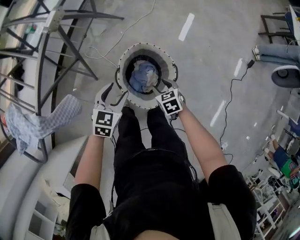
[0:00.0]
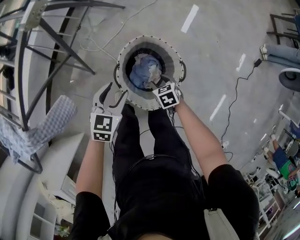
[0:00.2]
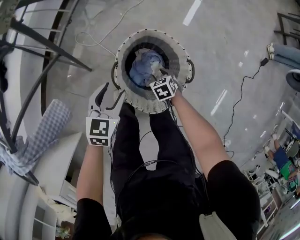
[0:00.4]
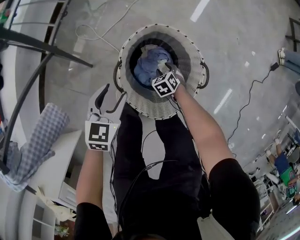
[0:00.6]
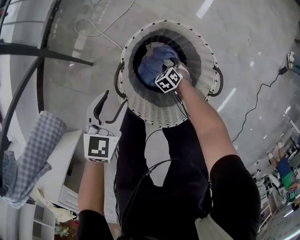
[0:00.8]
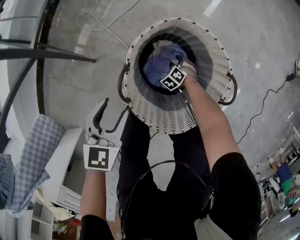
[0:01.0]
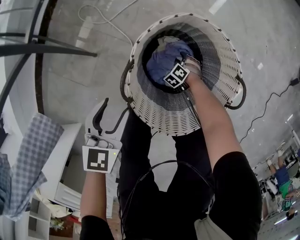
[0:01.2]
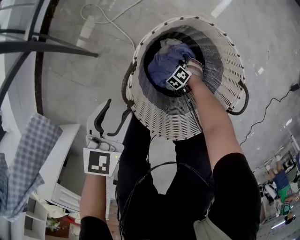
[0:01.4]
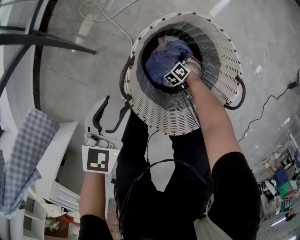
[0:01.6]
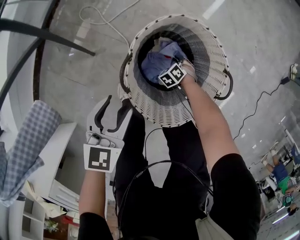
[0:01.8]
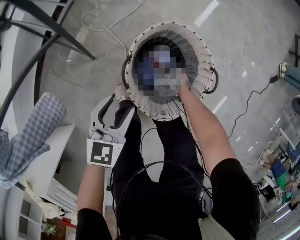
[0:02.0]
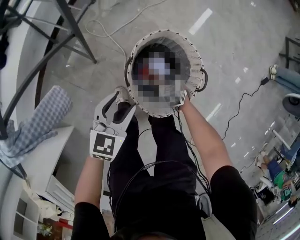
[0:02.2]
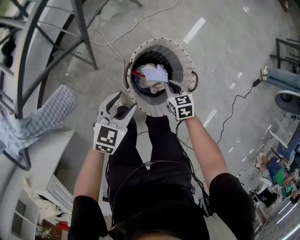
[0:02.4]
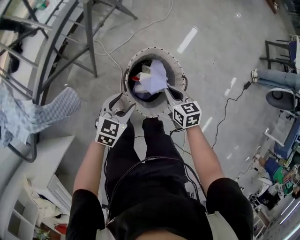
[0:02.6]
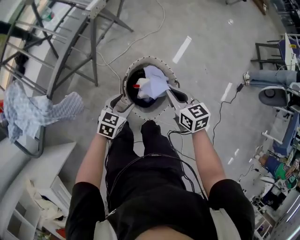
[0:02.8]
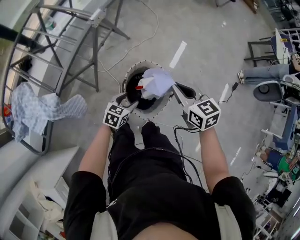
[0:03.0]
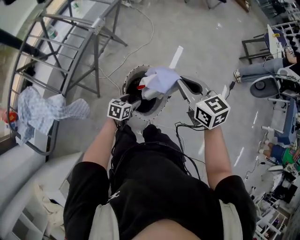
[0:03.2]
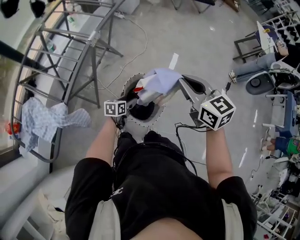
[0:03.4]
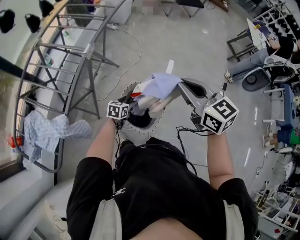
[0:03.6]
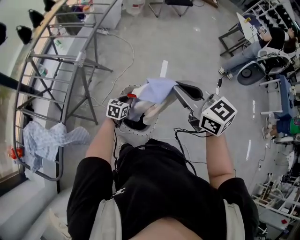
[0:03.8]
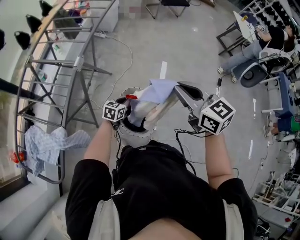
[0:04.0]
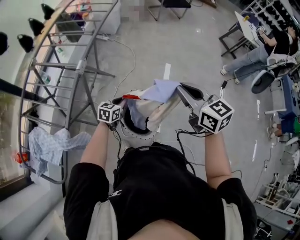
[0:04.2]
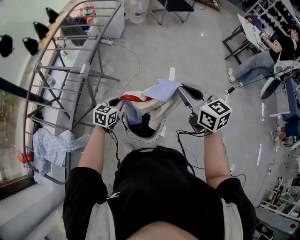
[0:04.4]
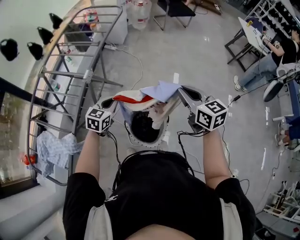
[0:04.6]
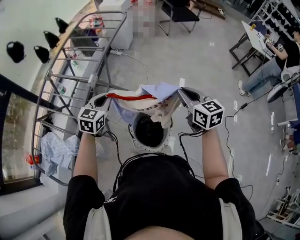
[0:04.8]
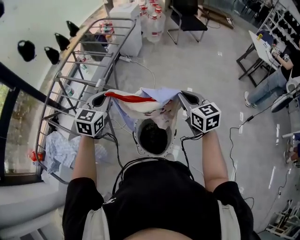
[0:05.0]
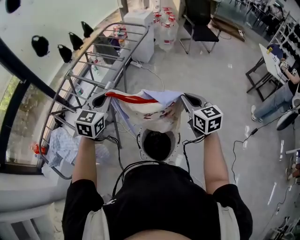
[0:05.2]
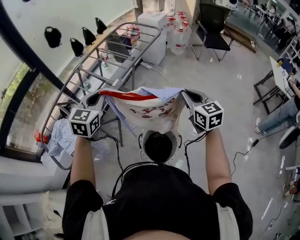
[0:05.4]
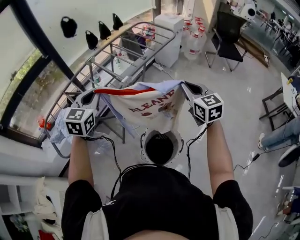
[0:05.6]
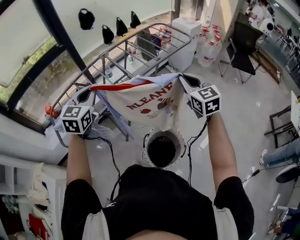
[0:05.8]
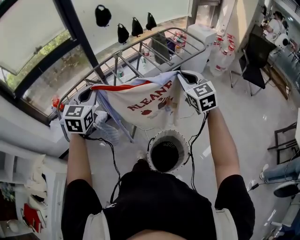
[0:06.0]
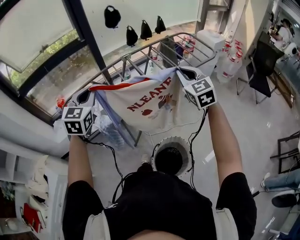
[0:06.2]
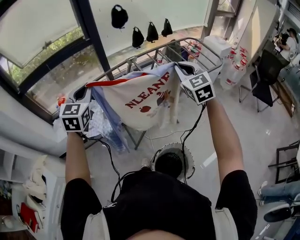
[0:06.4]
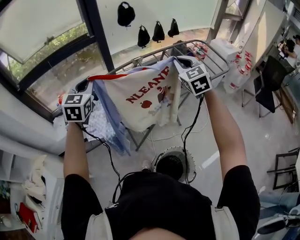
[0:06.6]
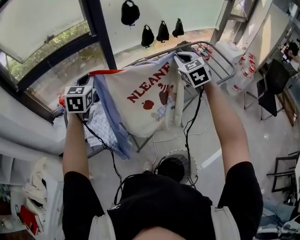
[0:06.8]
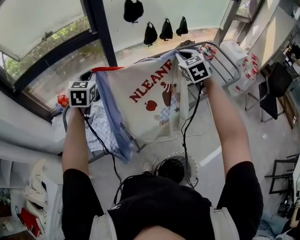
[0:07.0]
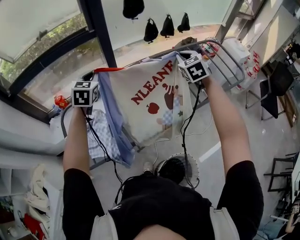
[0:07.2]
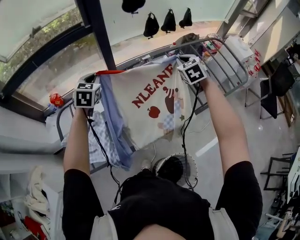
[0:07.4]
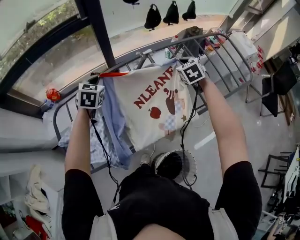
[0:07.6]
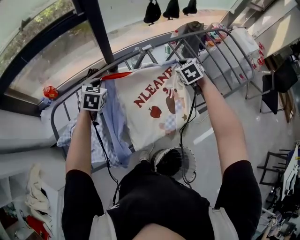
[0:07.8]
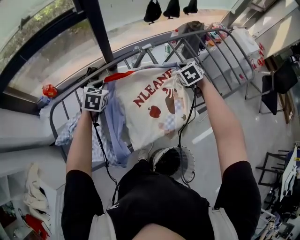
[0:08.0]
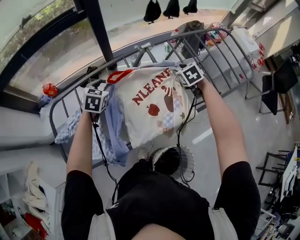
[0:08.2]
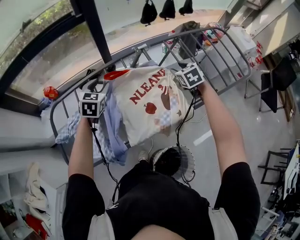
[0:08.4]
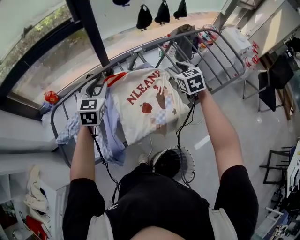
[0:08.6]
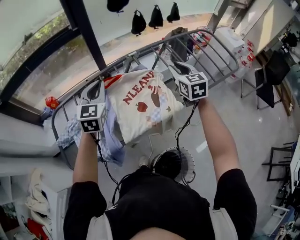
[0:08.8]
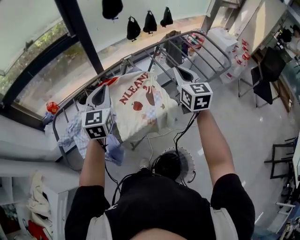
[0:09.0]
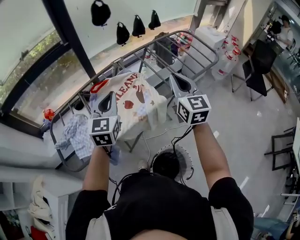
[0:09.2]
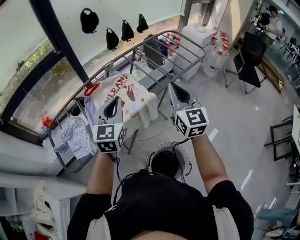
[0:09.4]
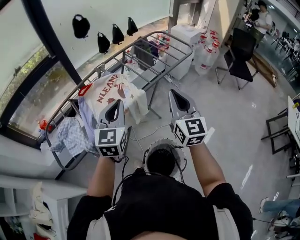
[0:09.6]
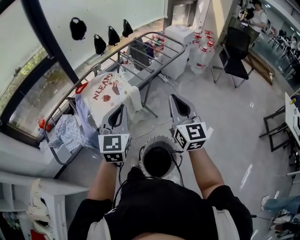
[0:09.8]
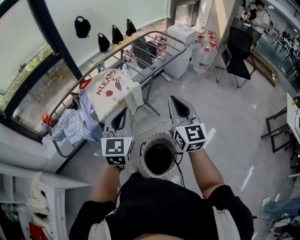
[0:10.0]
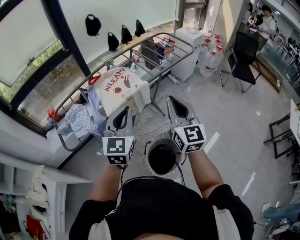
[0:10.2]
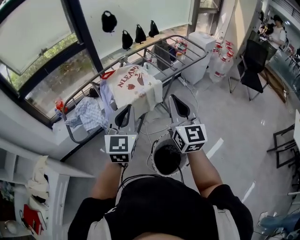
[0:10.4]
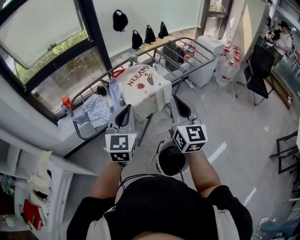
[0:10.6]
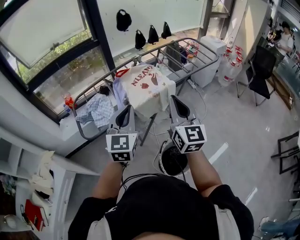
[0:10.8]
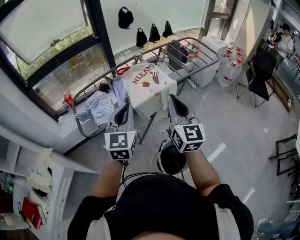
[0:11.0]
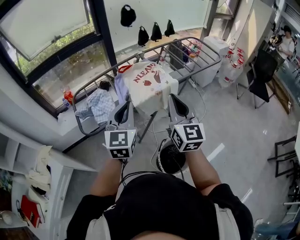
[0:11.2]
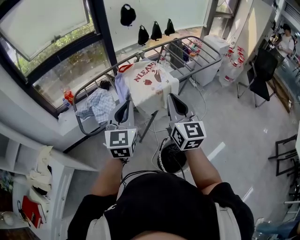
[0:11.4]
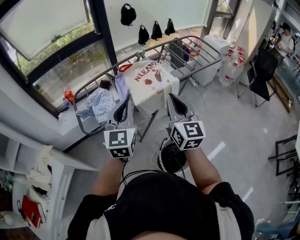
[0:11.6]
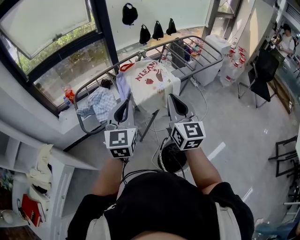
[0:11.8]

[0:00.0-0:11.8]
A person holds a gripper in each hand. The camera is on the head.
0:00.0 to 0:01.4: The left gripper shifts approximately 25 cm downward, while the right gripper heads downward, covering some 50 cm, and rotates around the line of its fingers by roughly 40 degrees, counterclockwise from behind.
0:01.4 to 0:03.0: The left gripper is displaced upward by roughly 25 cm. Meanwhile the right gripper heads upward, covering about 80 cm, tips its fingers upward by some 40 degrees, and closes its fingers.
0:03.0 to 0:04.4: The left gripper shifts some 20 cm upward and forward, and closes its fingers, while the right gripper heads upward and to the right, covering approximately 20 cm, and swivels some 20 degrees.
0:04.4 to 0:06.0: The right gripper changes place by roughly 25 cm, and changes its angle by approximately 40 degrees. The left gripper goes some 35 cm upward, and rotates some 70 degrees.
0:06.0 to 0:07.4: Both grippers are carried forward, roughly 50 cm. The right gripper rotates roughly 20 degrees, while the left gripper rotates roughly 20 degrees.
0:07.4 to 0:08.8: The right gripper heads backward, covering roughly 10 cm, travels downward and back again, about 15 cm each way, changes its angle by approximately 30 degrees, and opens its fingers, while the left gripper shifts some 15 cm to the right and backward, goes downward and returns, about 15 cm each way, and opens, then closes once more.
0:08.8 to 0:10.4: The two grippers travel together, backward, approximately 40 cm. The right gripper swivels roughly 30 degrees, and closes up.
0:10.4 to 0:11.8: The two grippers go some 10 cm to the left.

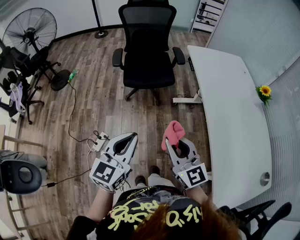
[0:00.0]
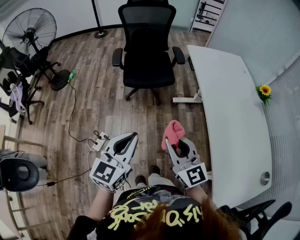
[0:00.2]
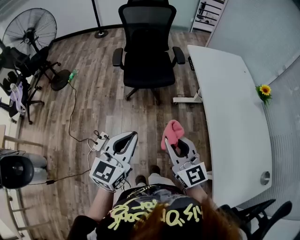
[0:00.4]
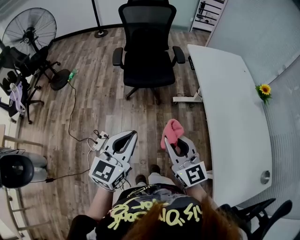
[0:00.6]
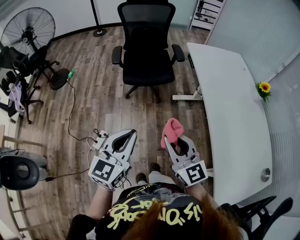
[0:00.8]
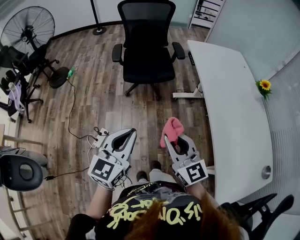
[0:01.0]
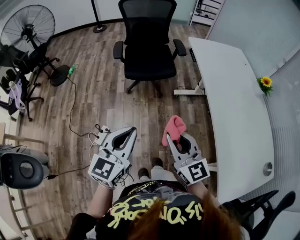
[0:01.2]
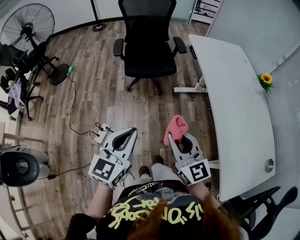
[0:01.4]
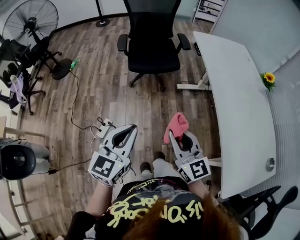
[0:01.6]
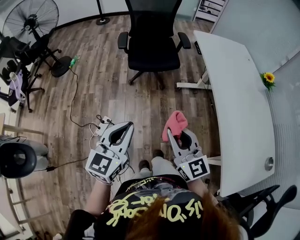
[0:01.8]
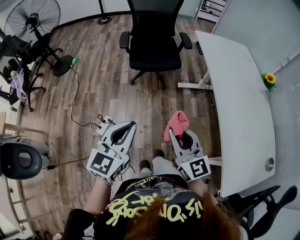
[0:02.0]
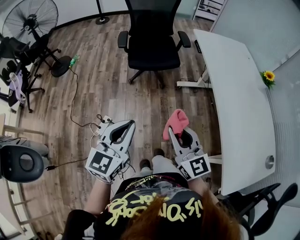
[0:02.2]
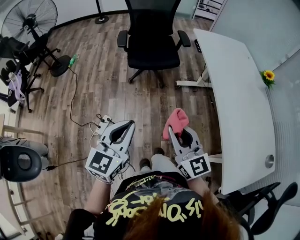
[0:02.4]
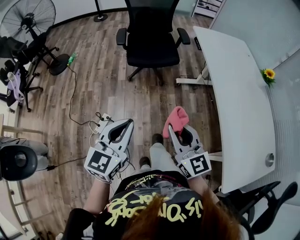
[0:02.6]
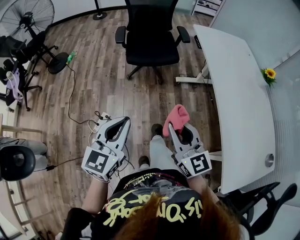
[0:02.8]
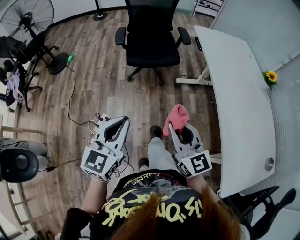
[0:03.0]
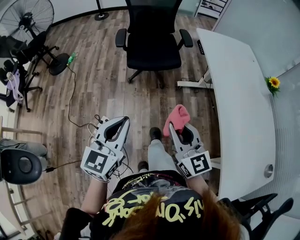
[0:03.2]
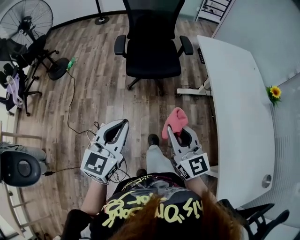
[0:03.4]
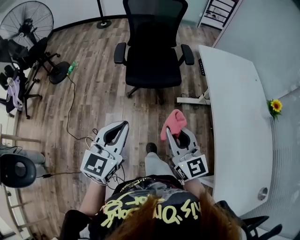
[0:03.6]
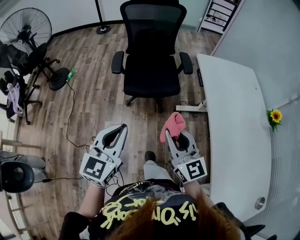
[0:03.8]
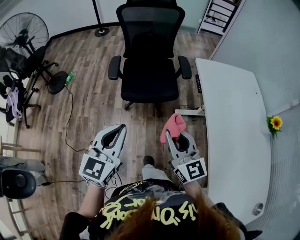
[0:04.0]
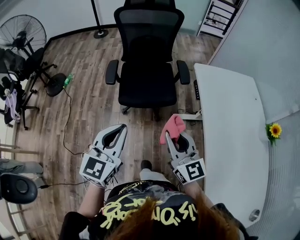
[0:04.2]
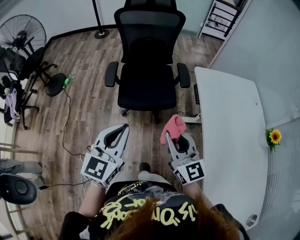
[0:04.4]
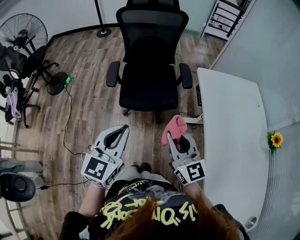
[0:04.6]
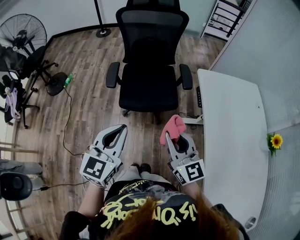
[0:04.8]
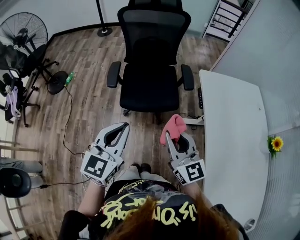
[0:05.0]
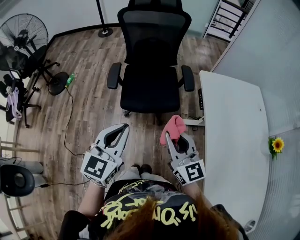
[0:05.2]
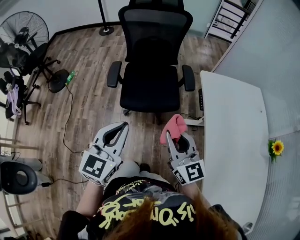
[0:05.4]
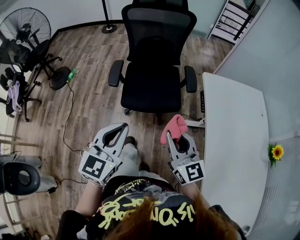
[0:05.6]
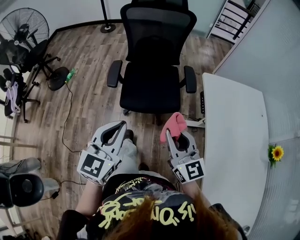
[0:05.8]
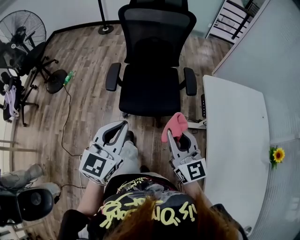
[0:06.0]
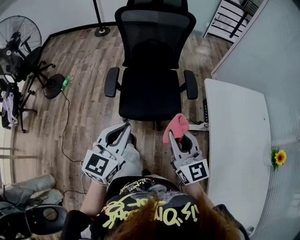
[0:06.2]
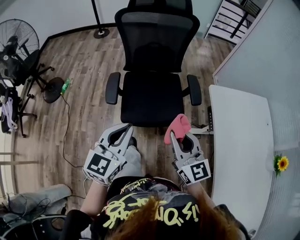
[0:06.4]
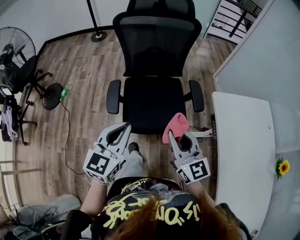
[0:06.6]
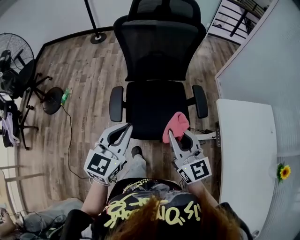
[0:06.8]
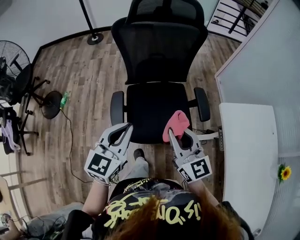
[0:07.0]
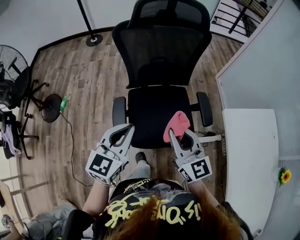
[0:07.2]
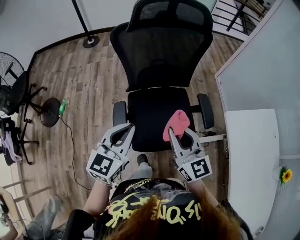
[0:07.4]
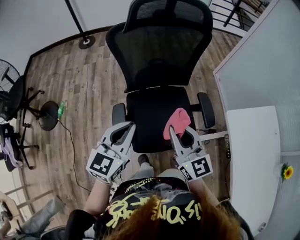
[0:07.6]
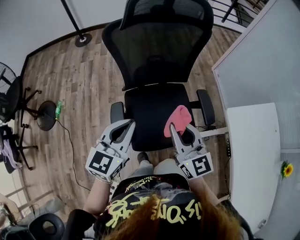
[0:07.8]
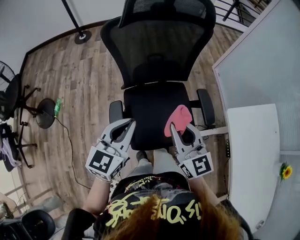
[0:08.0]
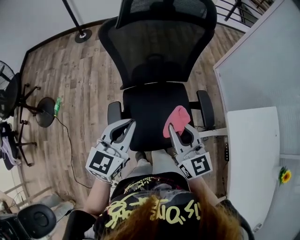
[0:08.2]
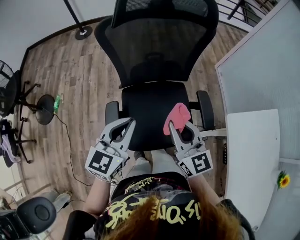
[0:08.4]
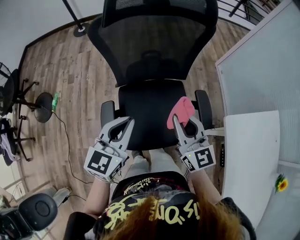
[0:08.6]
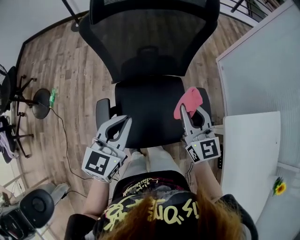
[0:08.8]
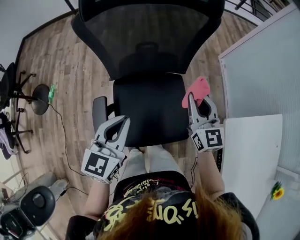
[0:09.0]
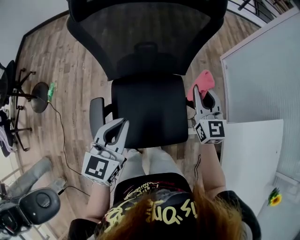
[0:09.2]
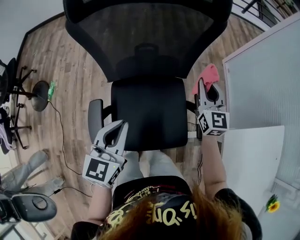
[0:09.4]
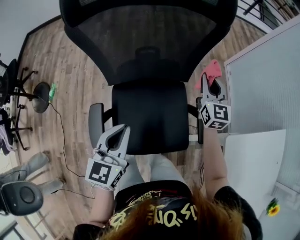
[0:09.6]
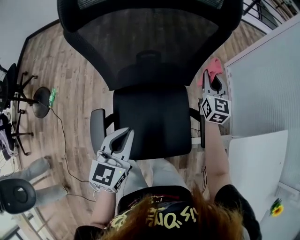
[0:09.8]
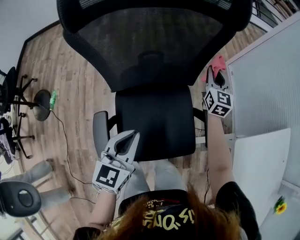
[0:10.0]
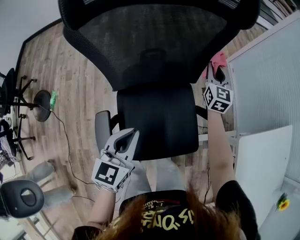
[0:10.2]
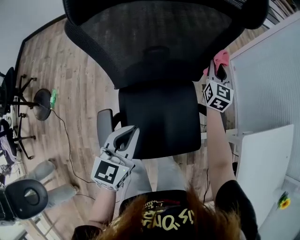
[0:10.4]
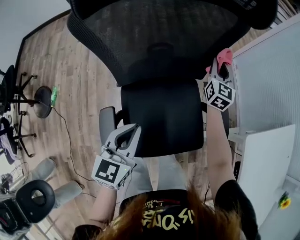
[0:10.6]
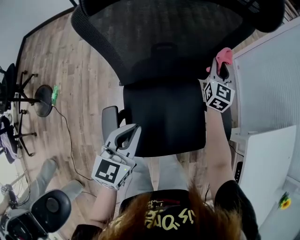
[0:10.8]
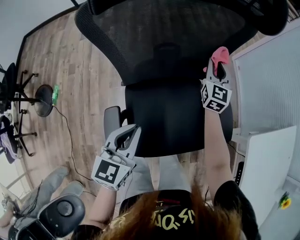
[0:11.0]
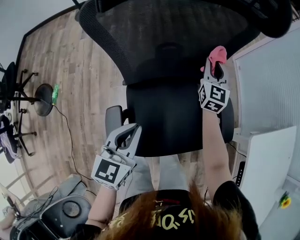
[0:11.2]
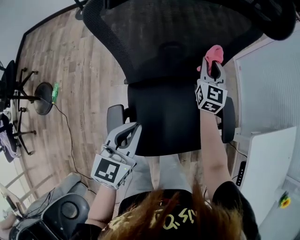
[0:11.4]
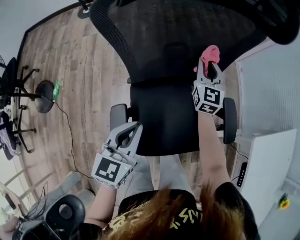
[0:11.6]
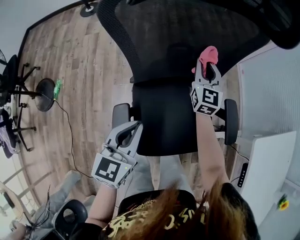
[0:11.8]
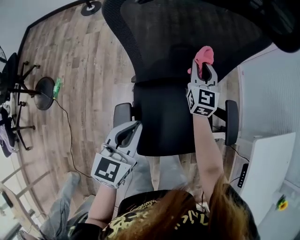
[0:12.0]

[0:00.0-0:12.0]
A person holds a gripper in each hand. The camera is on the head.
0:00.0 to 0:01.6: Both grippers move backward, approximately 5 cm.
0:01.6 to 0:03.0: There are only small adjustments of the grippers.
0:03.0 to 0:04.4: Both grippers move forward, some 30 cm.
0:04.4 to 0:06.0: Both grippers travel together forward, some 10 cm.
0:06.0 to 0:07.6: The right gripper heads forward and to the left, covering about 35 cm, while the left gripper shifts about 35 cm forward.
0:07.6 to 0:09.0: The left gripper goes some 10 cm forward, to the right and downward; the right gripper heads forward, to the right and downward, covering about 25 cm.
0:09.0 to 0:10.4: The right gripper moves forward and downward, approximately 25 cm, and changes its angle by about 20 degrees. The left gripper goes approximately 5 cm downward.
0:10.4 to 0:12.0: The left gripper goes approximately 10 cm to the left; the right gripper goes about 20 cm to the left and backward.
